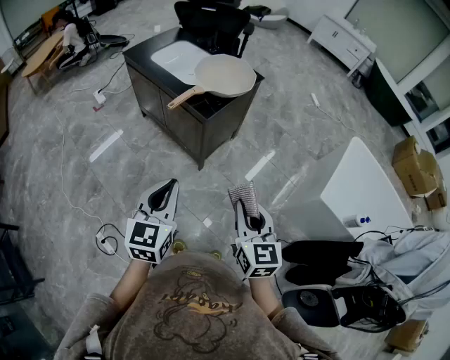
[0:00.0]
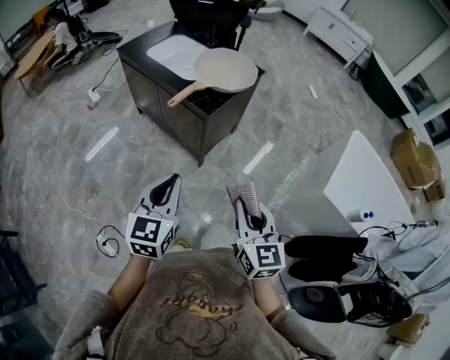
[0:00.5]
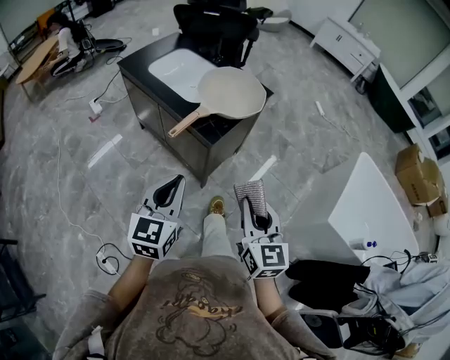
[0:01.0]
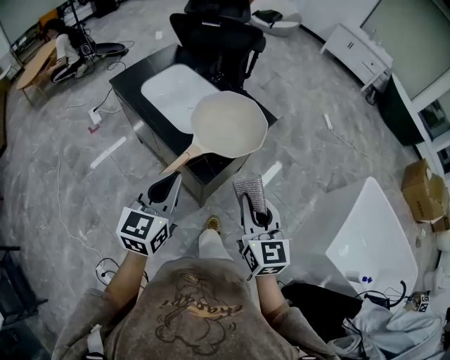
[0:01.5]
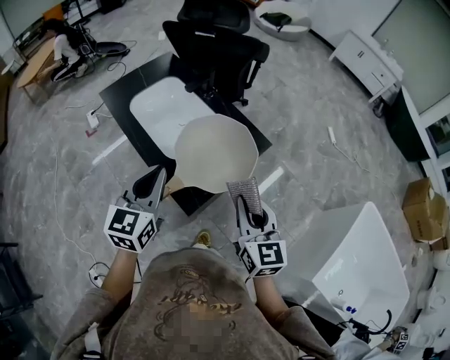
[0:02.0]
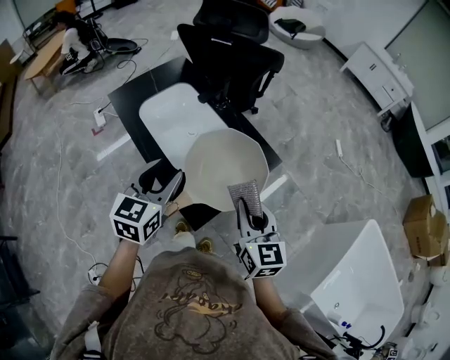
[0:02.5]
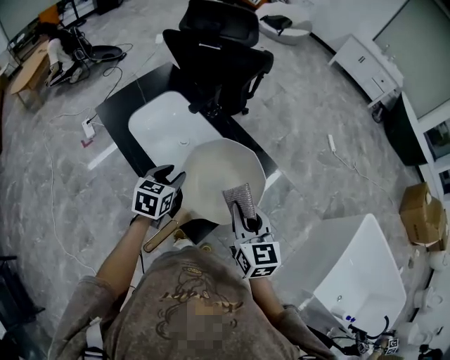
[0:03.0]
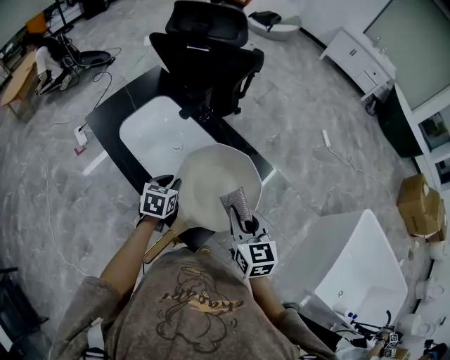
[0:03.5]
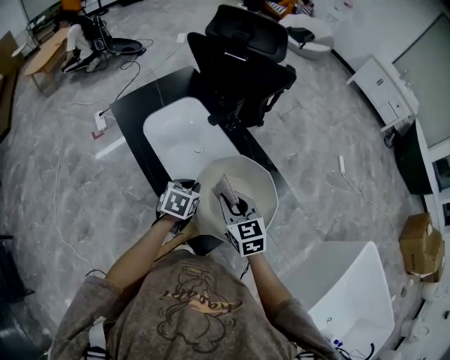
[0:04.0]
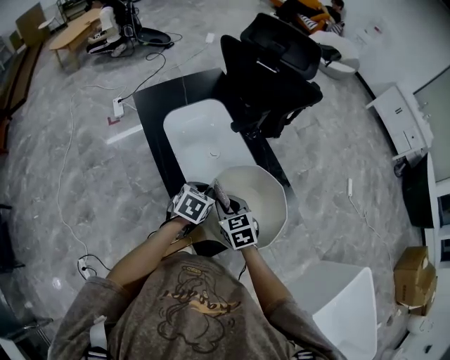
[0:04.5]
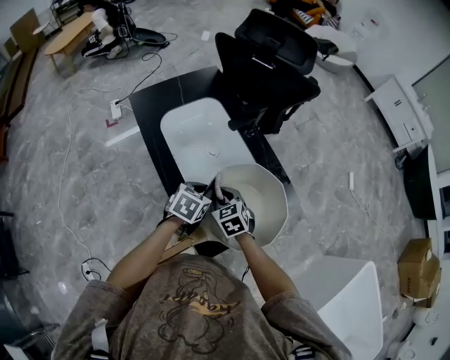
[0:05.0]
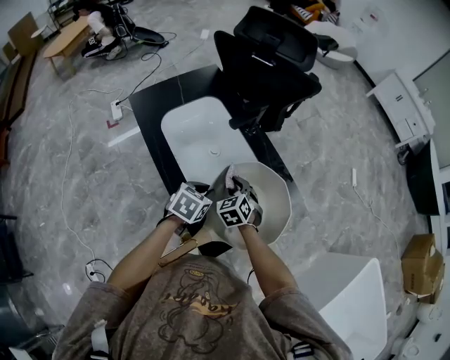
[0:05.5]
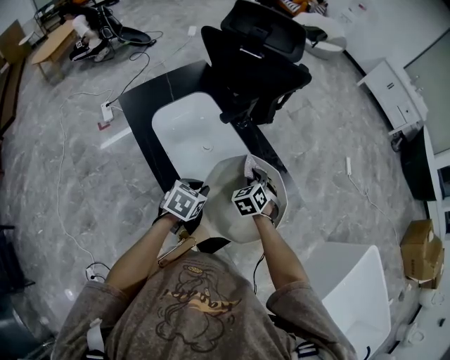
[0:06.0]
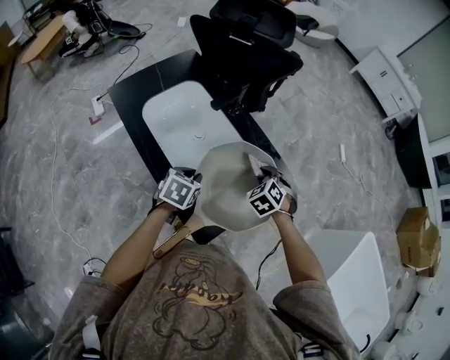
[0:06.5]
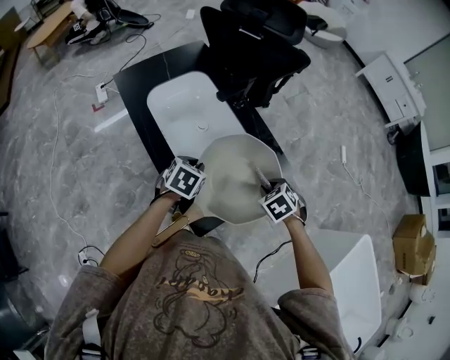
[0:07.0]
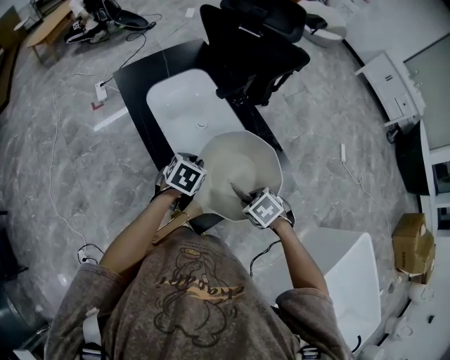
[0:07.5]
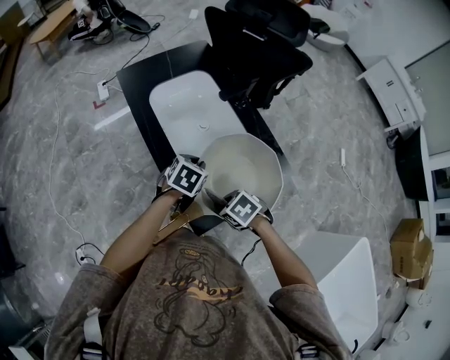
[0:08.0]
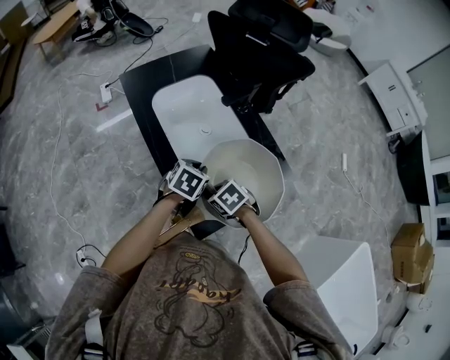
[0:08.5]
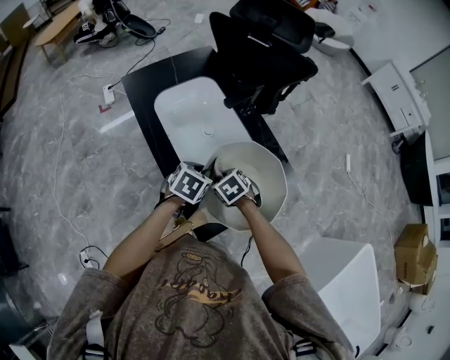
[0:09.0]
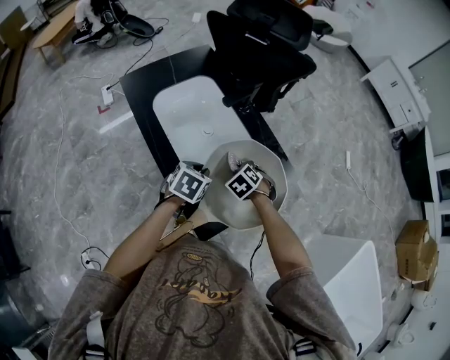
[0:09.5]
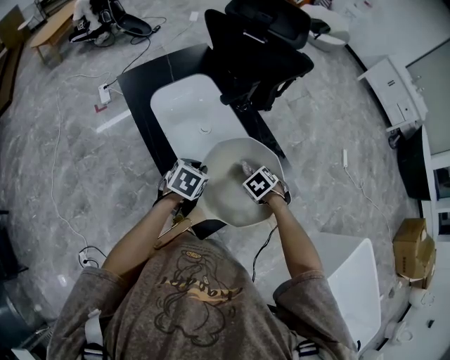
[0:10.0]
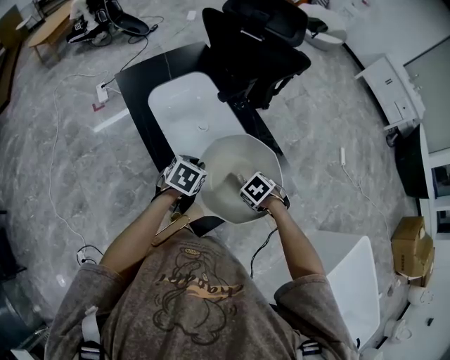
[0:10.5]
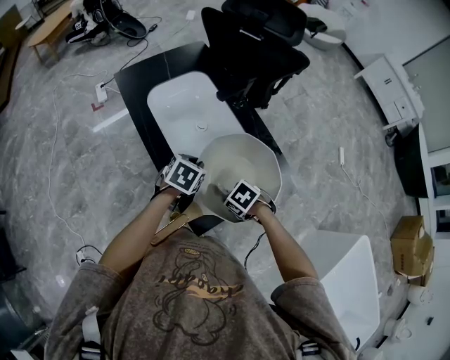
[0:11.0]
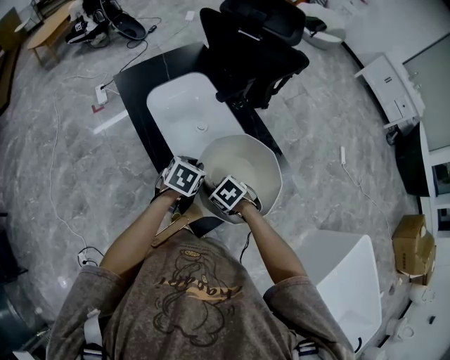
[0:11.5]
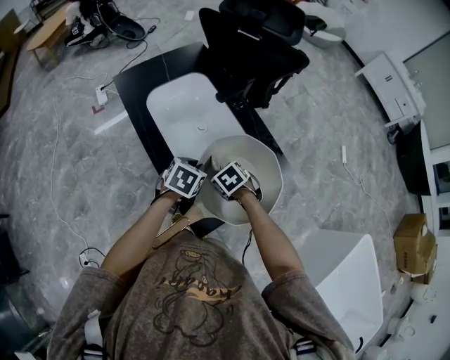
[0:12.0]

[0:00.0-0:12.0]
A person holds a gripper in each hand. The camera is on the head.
0:00.0 to 0:02.0: The two grippers travel together, forward, some 50 cm.
0:02.0 to 0:04.0: The left gripper goes about 30 cm downward and forward, tilts its fingers some 40 degrees downward, and opens, then closes once more, while the right gripper heads forward, to the left and downward, covering some 25 cm, and changes its angle by approximately 30 degrees.
0:04.0 to 0:06.0: The right gripper moves about 15 cm, and swivels some 40 degrees.
0:06.0 to 0:08.0: The right gripper shifts by about 20 cm, and swivels roughly 50 degrees.
0:08.0 to 0:10.0: The right gripper ends up about 15 cm from where it was, and rotates about 20 degrees.
0:10.0 to 0:12.0: The right gripper ends up some 10 cm from where it was.

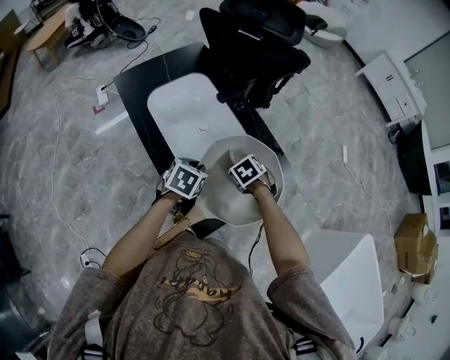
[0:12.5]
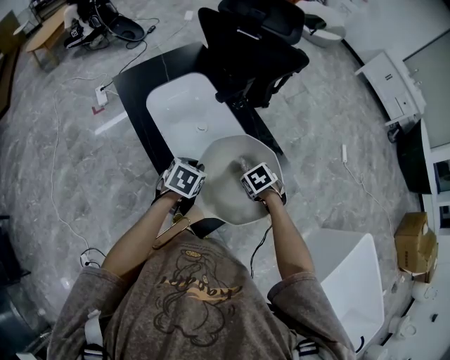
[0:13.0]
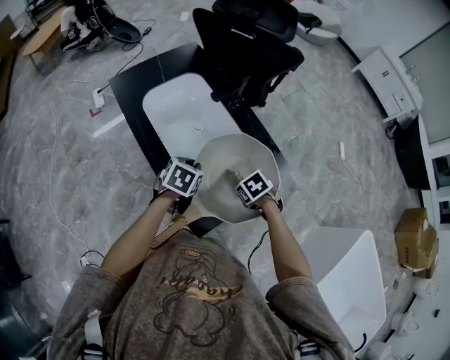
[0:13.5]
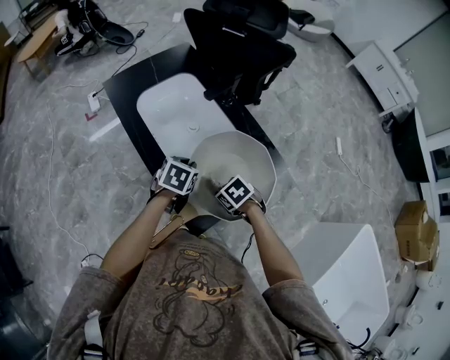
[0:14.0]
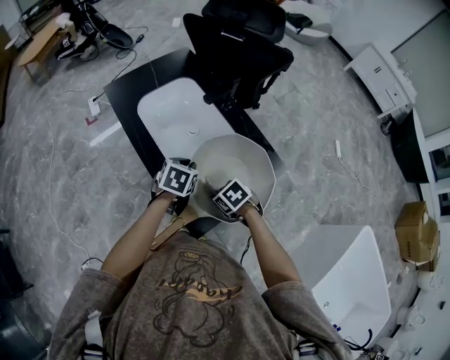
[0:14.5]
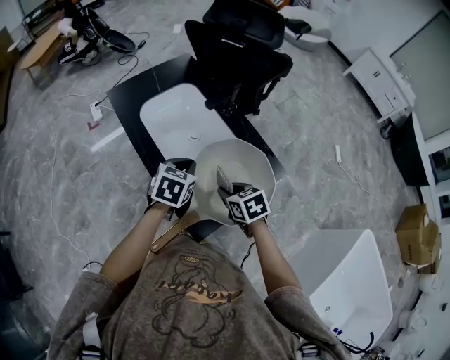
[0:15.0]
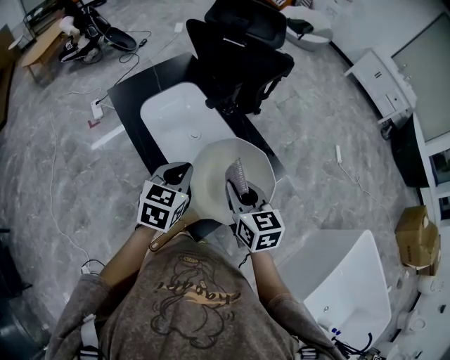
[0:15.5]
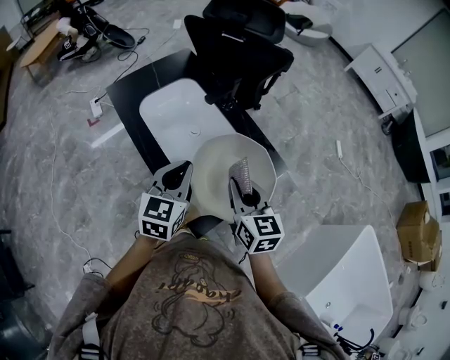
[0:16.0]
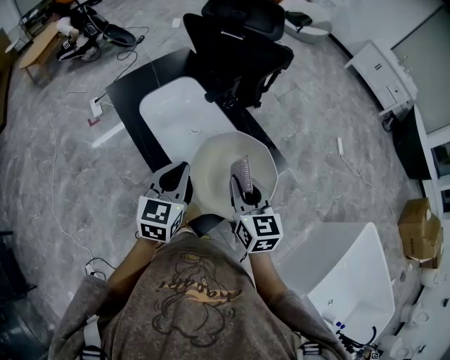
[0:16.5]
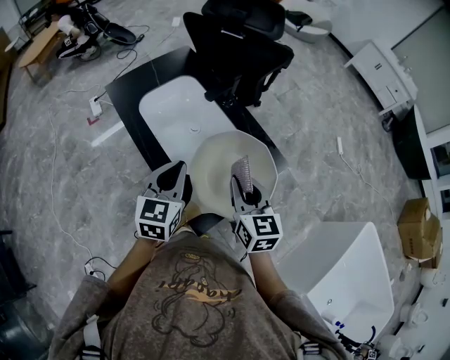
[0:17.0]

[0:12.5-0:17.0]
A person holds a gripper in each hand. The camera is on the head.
0:12.5 to 0:14.5: The right gripper moves some 10 cm.
0:14.5 to 0:17.0: The two grippers go about 20 cm upward. The left gripper tips its fingers upward by roughly 30 degrees; the right gripper angles its fingers upward, by roughly 50 degrees.

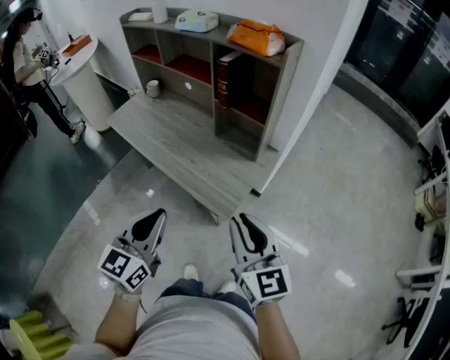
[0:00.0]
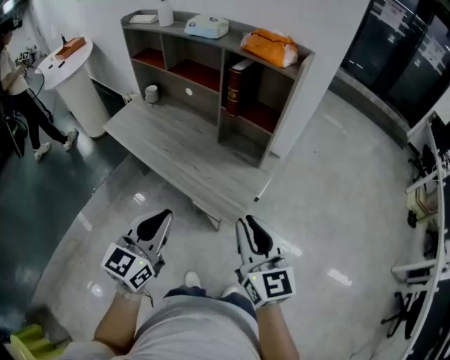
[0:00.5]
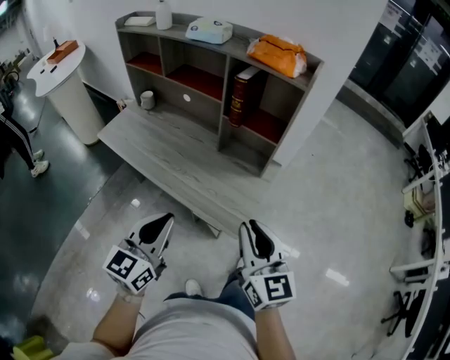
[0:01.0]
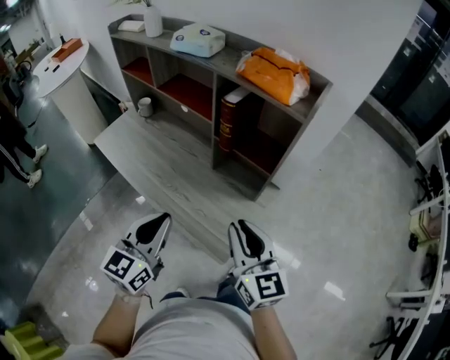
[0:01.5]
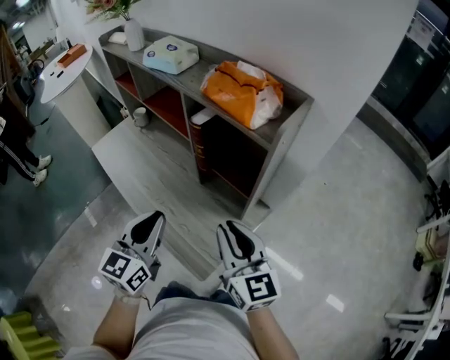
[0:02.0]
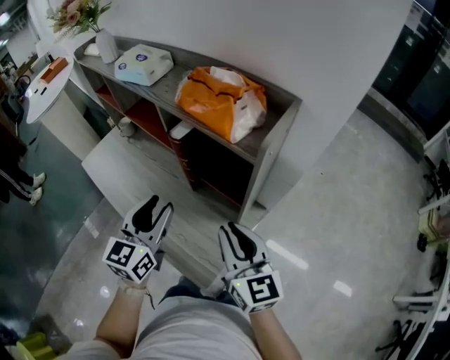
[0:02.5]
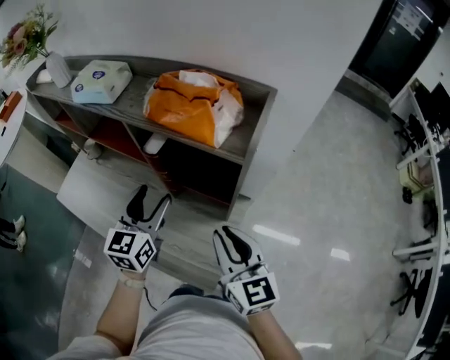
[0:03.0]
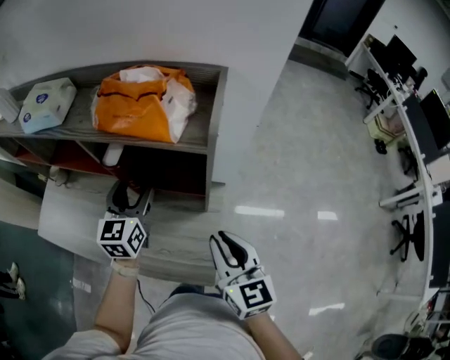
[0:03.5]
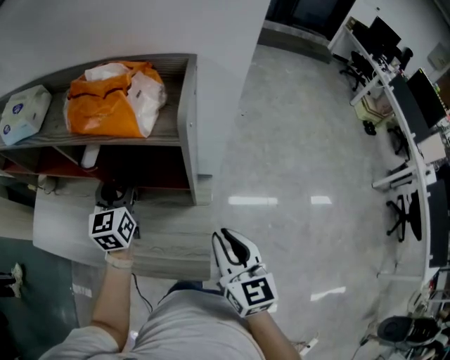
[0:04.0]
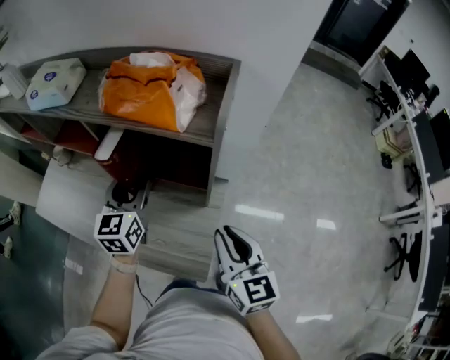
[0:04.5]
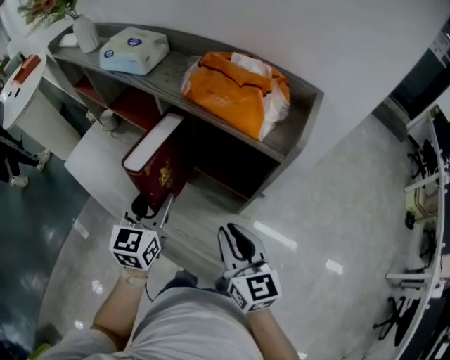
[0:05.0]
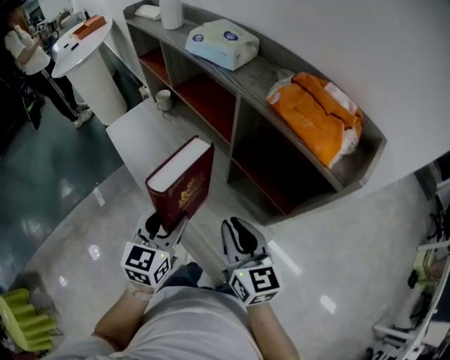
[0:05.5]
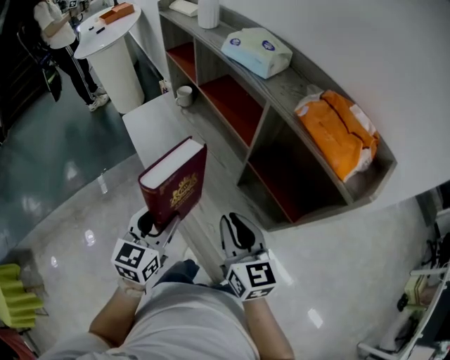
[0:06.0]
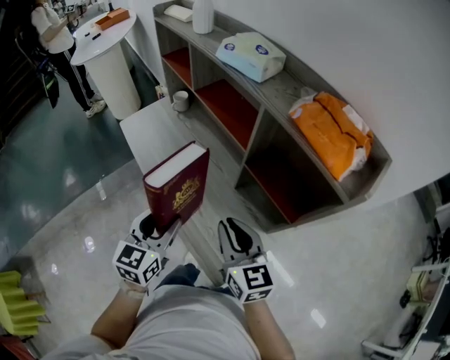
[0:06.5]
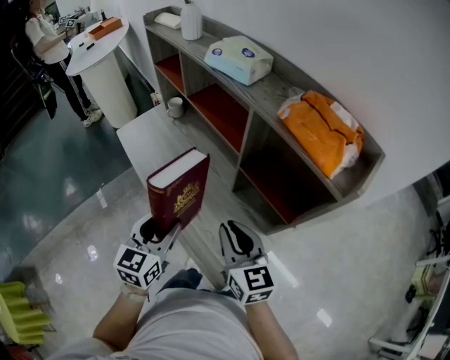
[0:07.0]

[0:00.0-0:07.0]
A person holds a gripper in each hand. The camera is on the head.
0:00.0 to 0:02.0: Both grippers travel together forward, about 25 cm.
0:02.0 to 0:03.5: The right gripper moves roughly 5 cm, and changes its angle by about 30 degrees. The left gripper moves roughly 25 cm, and opens up.
0:03.5 to 0:05.0: The left gripper is displaced backward and to the left by roughly 10 cm, while the right gripper travels to the left by some 5 cm, and turns by about 20 degrees.
0:05.0 to 0:07.0: The left gripper shifts roughly 15 cm to the left and backward. Meanwhile the right gripper heads to the left, covering about 10 cm, and swivels roughly 20 degrees.

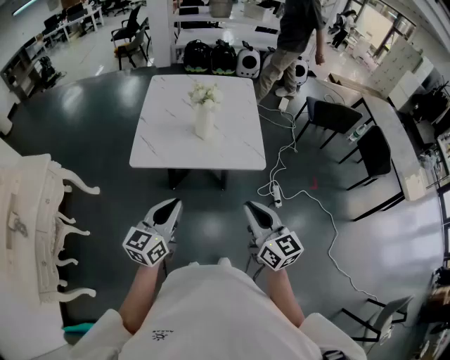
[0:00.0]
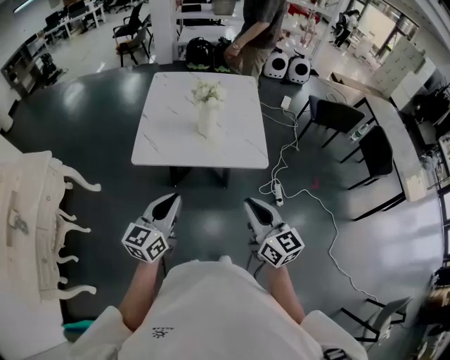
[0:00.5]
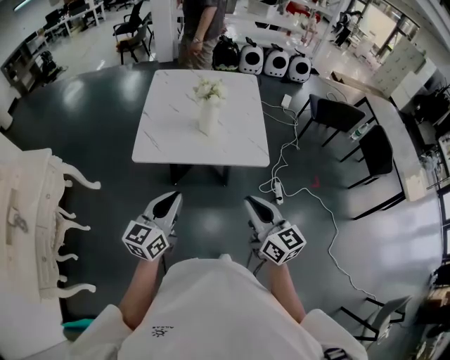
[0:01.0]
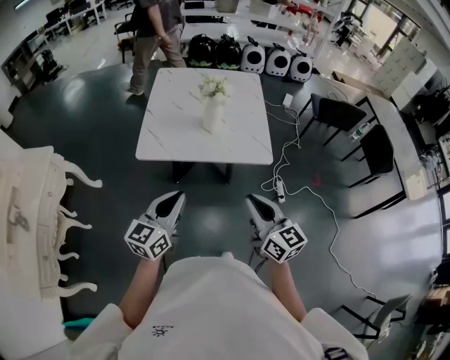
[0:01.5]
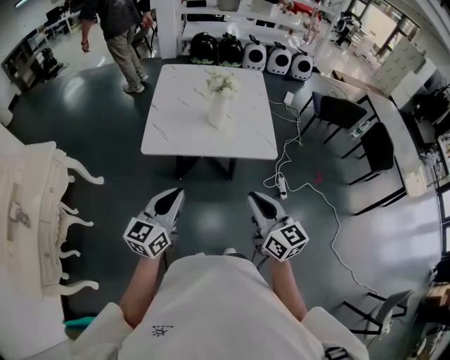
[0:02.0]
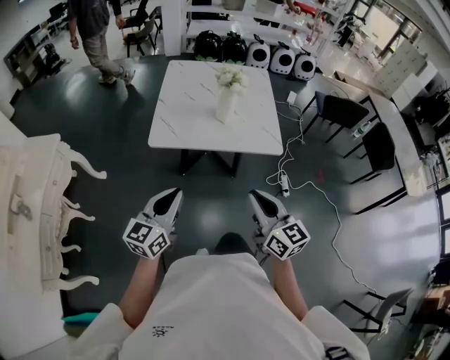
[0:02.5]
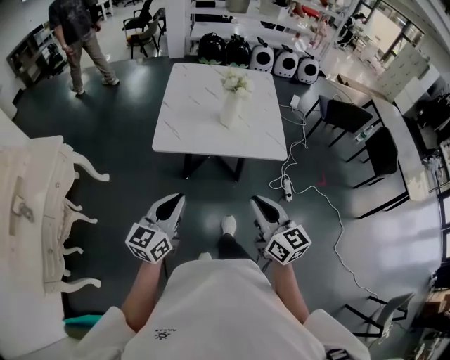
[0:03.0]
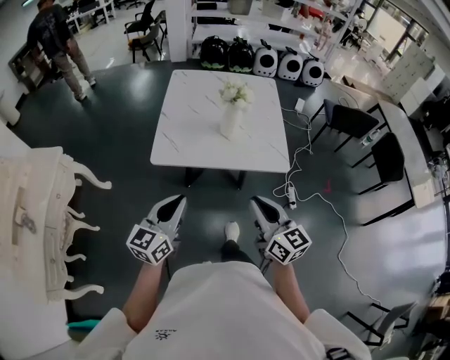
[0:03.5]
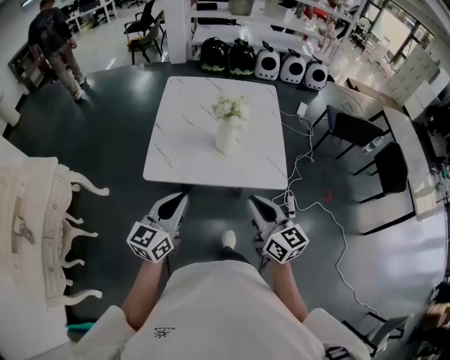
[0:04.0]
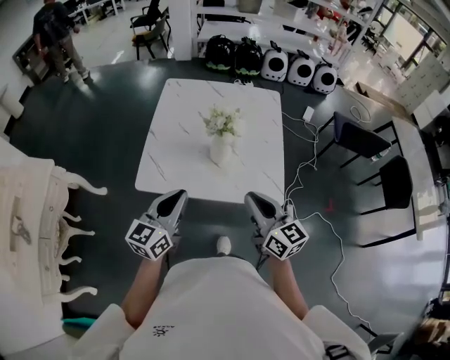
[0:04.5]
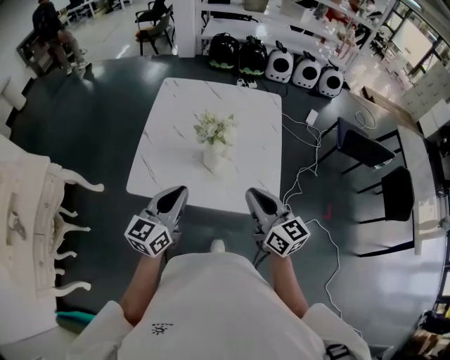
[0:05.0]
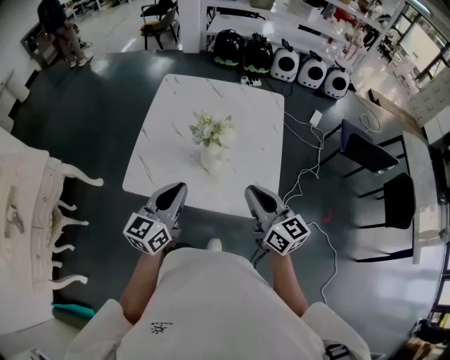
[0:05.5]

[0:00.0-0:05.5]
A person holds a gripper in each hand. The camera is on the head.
0:00.0 to 0:02.0: Both grippers move to the left, roughly 5 cm.
0:02.0 to 0:03.5: The right gripper goes approximately 5 cm forward. Meanwhile the left gripper ends up about 5 cm from where it was.
0:03.5 to 0:05.5: Both grippers move forward and to the right, approximately 30 cm.
